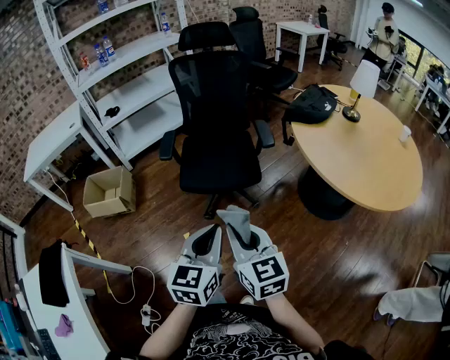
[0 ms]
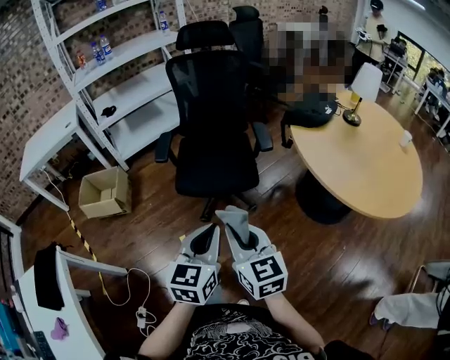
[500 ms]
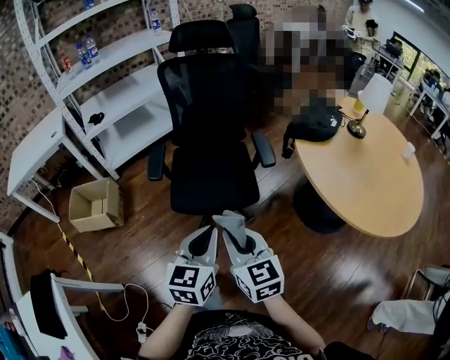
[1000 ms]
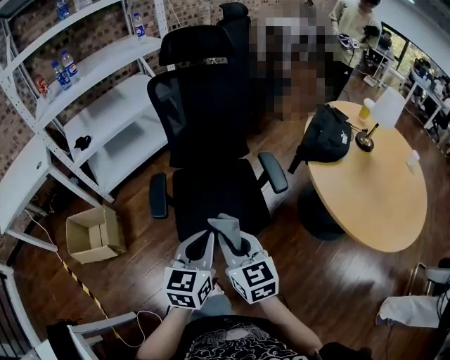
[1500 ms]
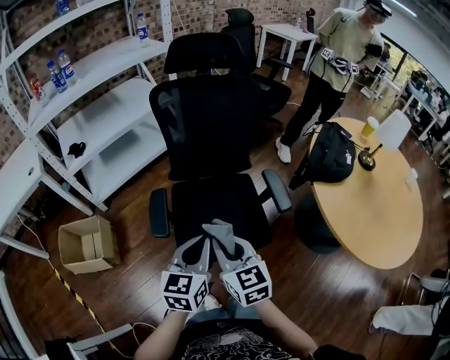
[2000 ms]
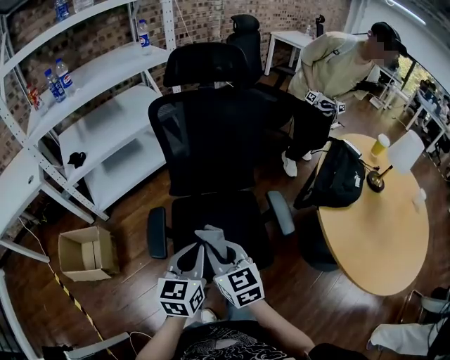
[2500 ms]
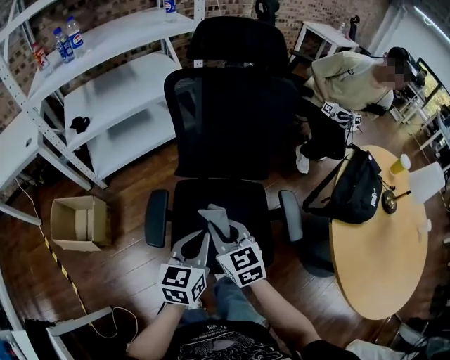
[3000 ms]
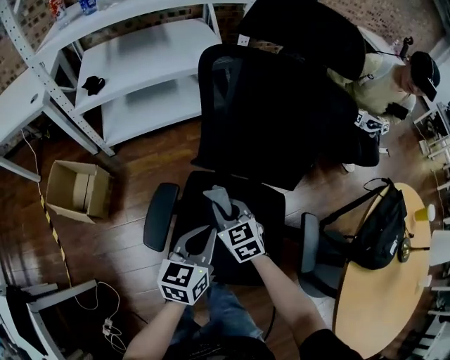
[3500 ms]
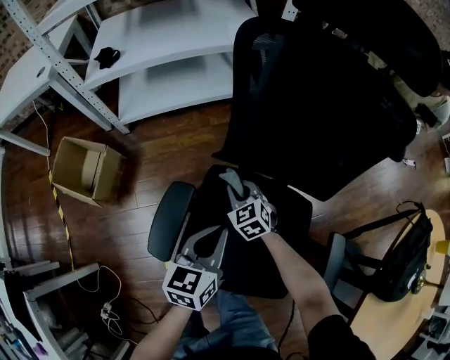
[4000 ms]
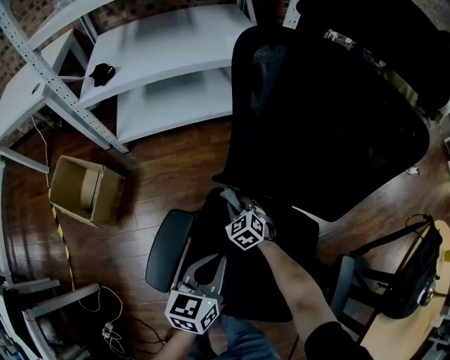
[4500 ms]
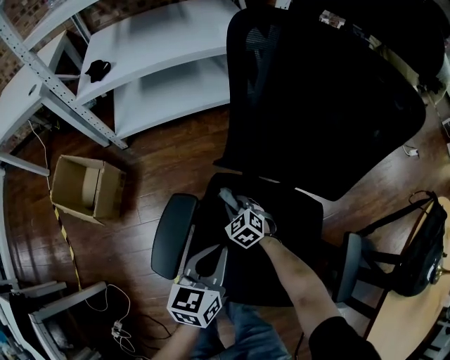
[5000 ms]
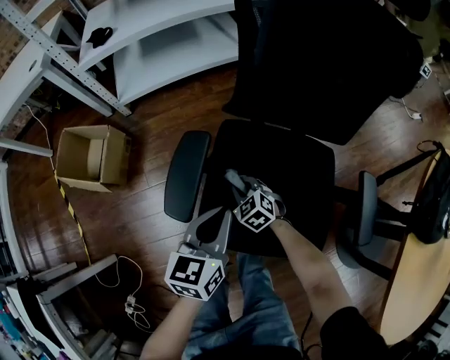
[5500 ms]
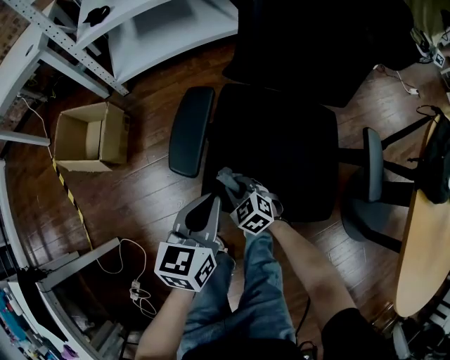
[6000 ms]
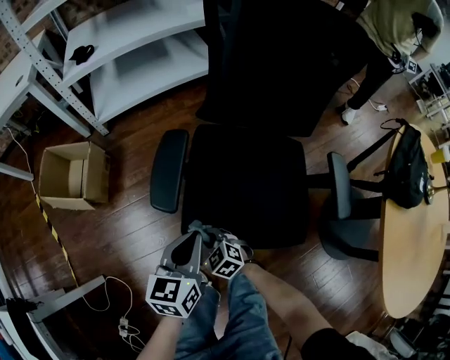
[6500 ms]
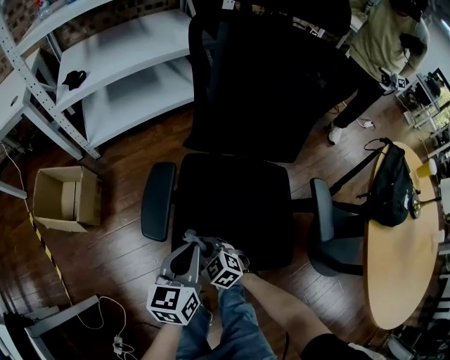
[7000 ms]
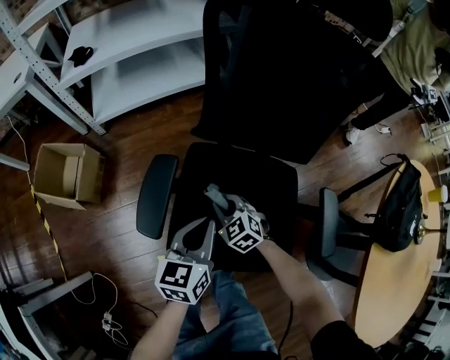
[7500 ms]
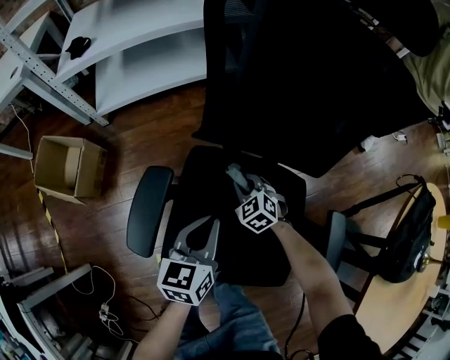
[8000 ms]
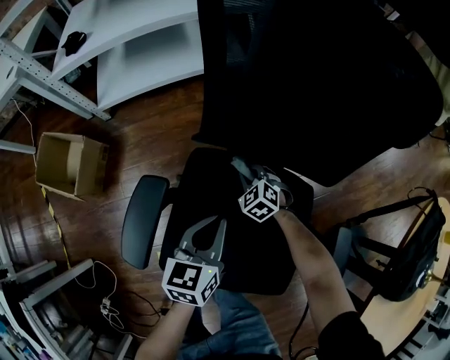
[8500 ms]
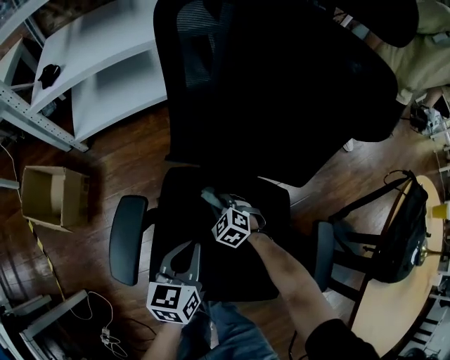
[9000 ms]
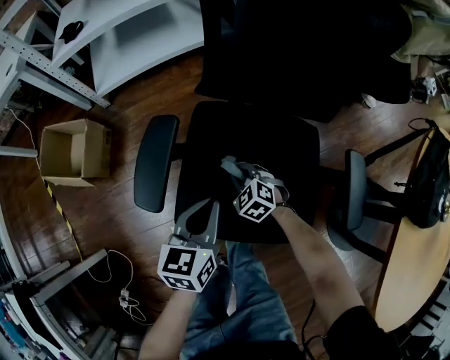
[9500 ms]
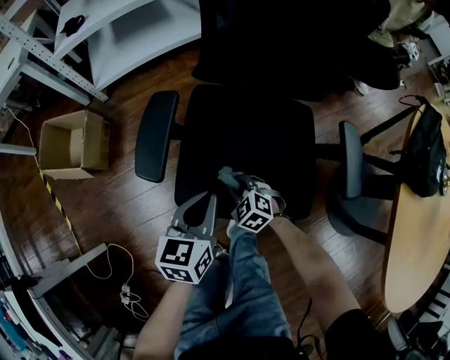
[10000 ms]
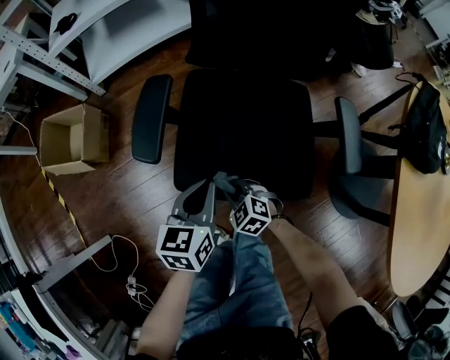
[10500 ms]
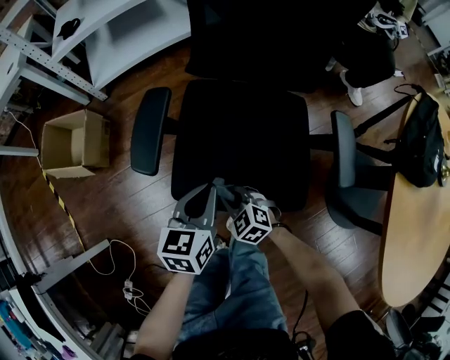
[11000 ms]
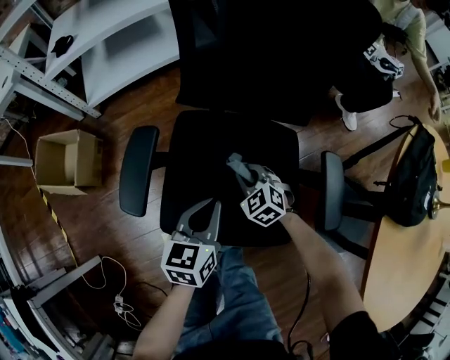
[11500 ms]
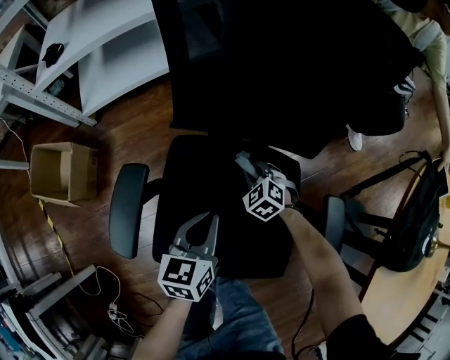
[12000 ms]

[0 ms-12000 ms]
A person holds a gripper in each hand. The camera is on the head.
0 ms to 2000 ms: Both grippers are carried forward, about 40 cm.
2000 ms to 4000 ms: The right gripper travels forward and downward by roughly 50 cm, and changes its angle by about 50 degrees; the left gripper travels forward and downward by roughly 35 cm, and turns by approximately 30 degrees.
4000 ms to 6000 ms: The grippers both shift backward and to the left by about 25 cm.
6000 ms to 8000 ms: Both grippers move forward and to the right, about 25 cm.
8000 ms to 10000 ms: The left gripper goes approximately 15 cm backward. Meanwhile the right gripper is displaced backward by approximately 25 cm.
10000 ms to 12000 ms: The left gripper shifts approximately 20 cm forward and to the right. Meanwhile the right gripper moves forward and to the right, about 30 cm.

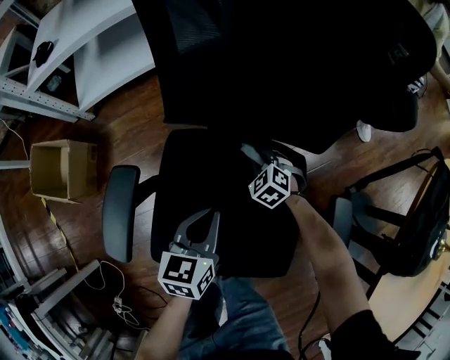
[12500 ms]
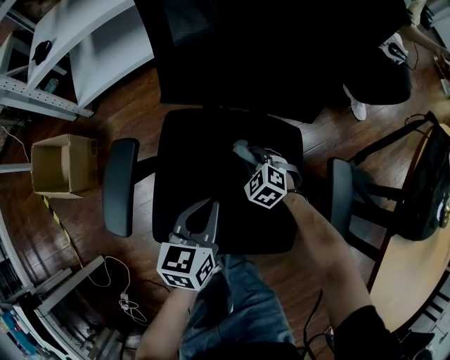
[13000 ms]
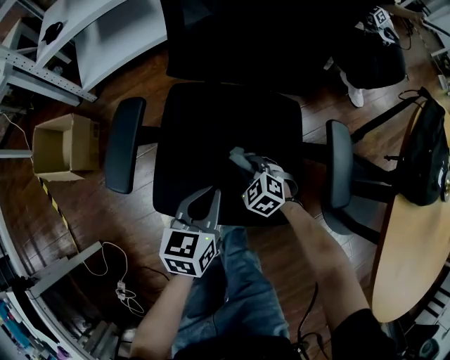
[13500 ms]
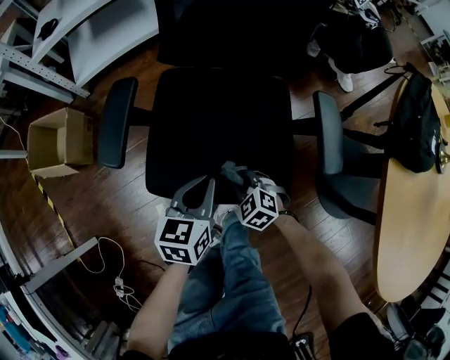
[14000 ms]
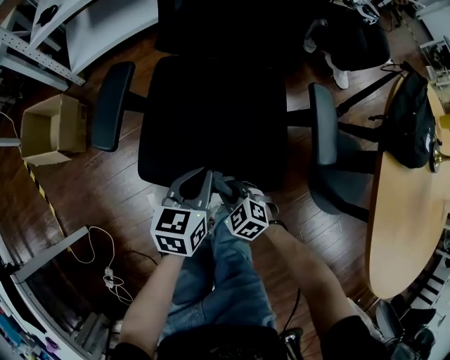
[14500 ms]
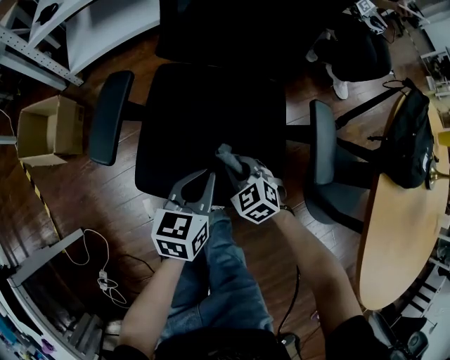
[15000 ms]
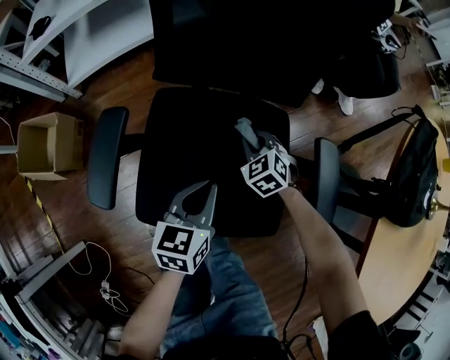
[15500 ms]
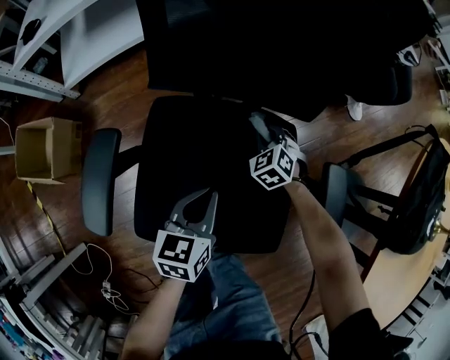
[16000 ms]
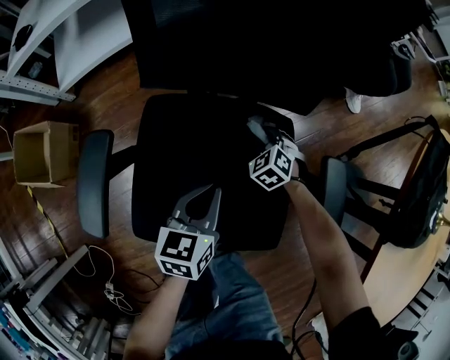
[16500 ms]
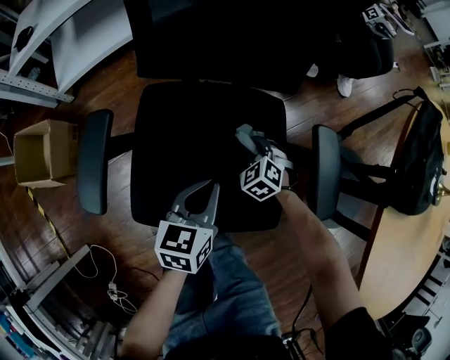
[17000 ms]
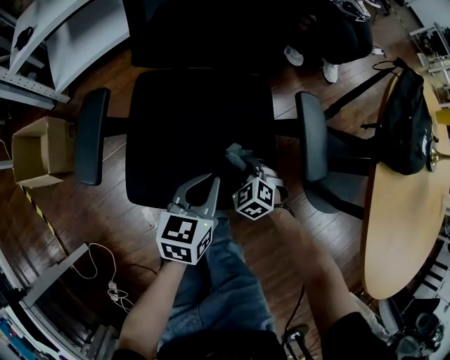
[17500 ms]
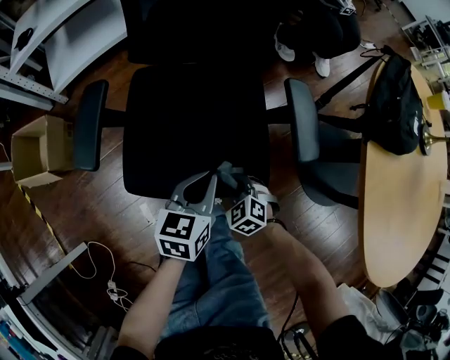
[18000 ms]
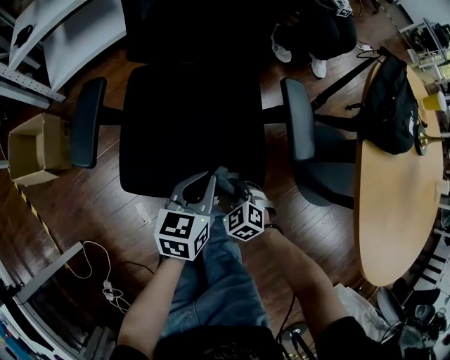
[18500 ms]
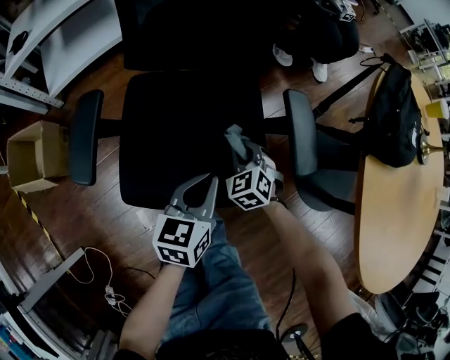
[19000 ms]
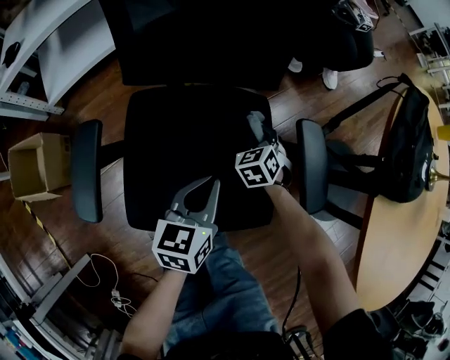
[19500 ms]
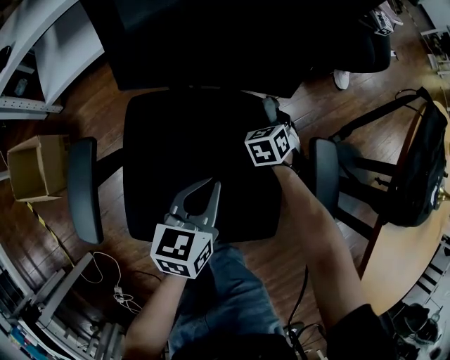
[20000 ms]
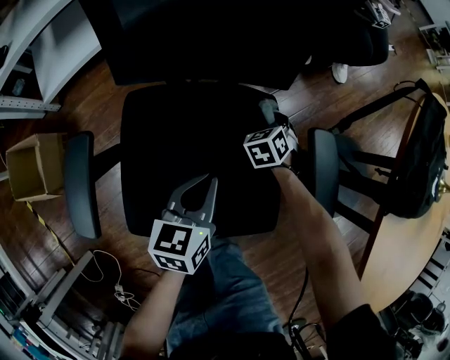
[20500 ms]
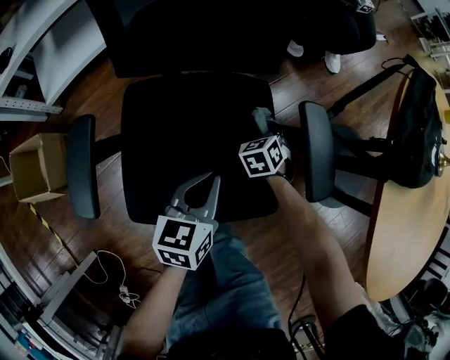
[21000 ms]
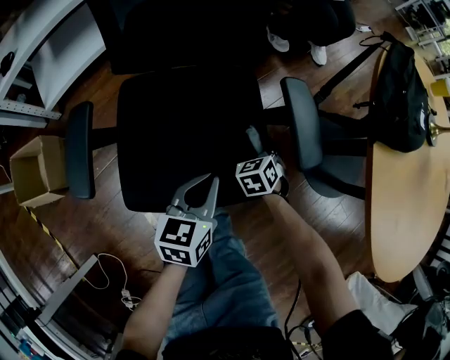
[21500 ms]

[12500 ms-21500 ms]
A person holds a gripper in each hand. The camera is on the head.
12500 ms to 14500 ms: The right gripper goes roughly 40 cm backward, while the left gripper shifts some 20 cm backward.
14500 ms to 17000 ms: The right gripper travels forward by roughly 30 cm, and swivels approximately 20 degrees. Meanwhile the left gripper travels forward by roughly 10 cm.
17000 ms to 19500 ms: The left gripper travels backward and back again, about 10 cm each way. The right gripper is displaced to the right by some 5 cm, goes backward and returns, roughly 25 cm each way, and swivels roughly 30 degrees.
19500 ms to 21500 ms: The right gripper goes approximately 15 cm backward and to the right. Meanwhile the left gripper is displaced backward and to the right by about 10 cm.

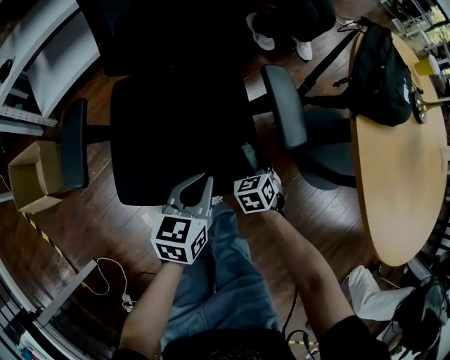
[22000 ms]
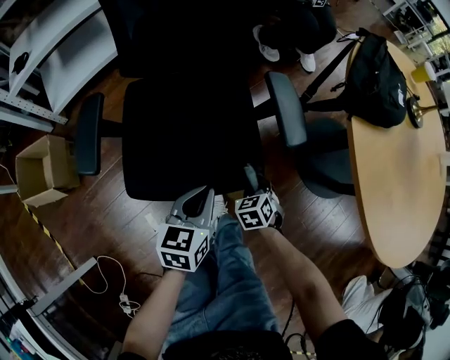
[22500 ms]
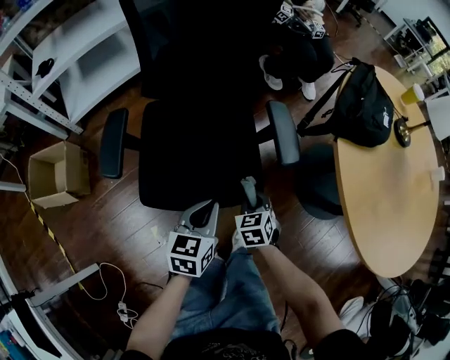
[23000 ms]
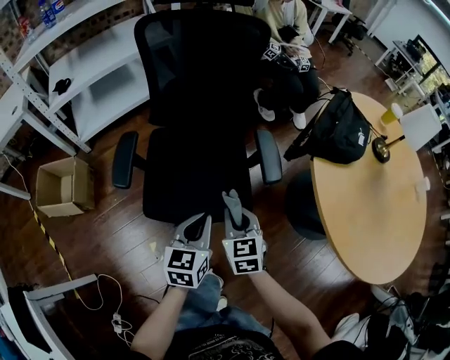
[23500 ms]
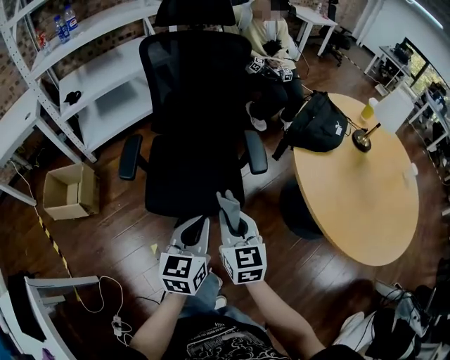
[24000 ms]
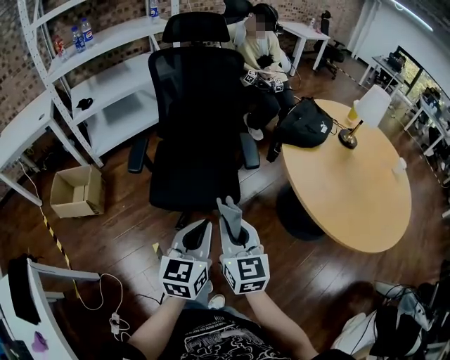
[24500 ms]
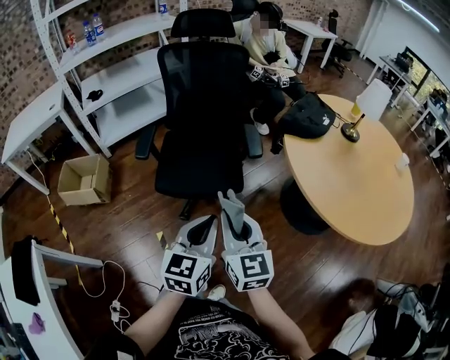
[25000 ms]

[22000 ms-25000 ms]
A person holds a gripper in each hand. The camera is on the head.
22000 ms to 23500 ms: The left gripper shifts about 15 cm upward and backward, while the right gripper goes about 30 cm upward and backward, and changes its angle by approximately 30 degrees.
23500 ms to 25000 ms: The grippers both shift backward and upward by about 35 cm. The right gripper turns by approximately 30 degrees.

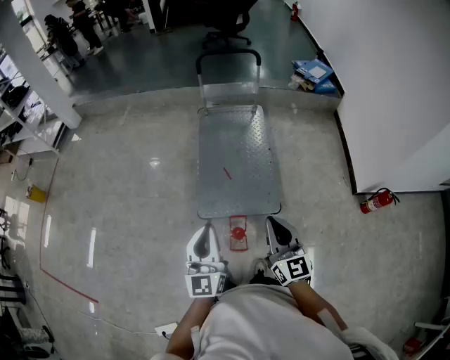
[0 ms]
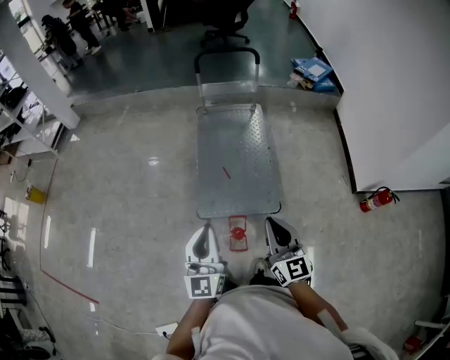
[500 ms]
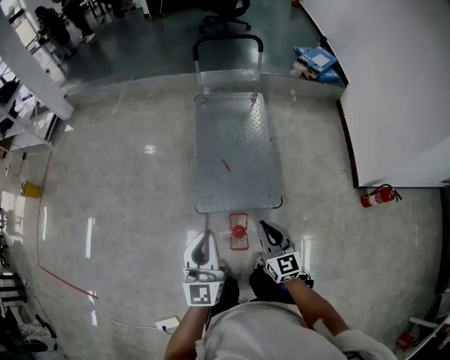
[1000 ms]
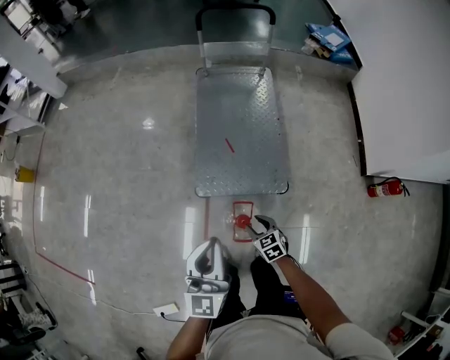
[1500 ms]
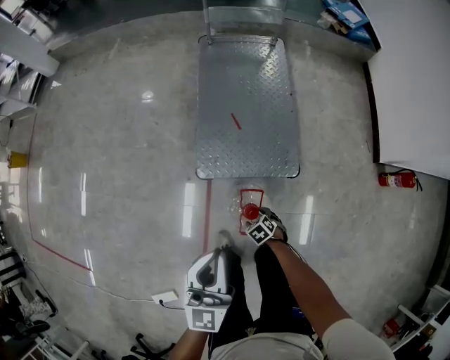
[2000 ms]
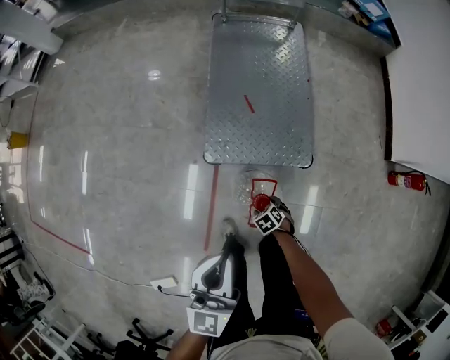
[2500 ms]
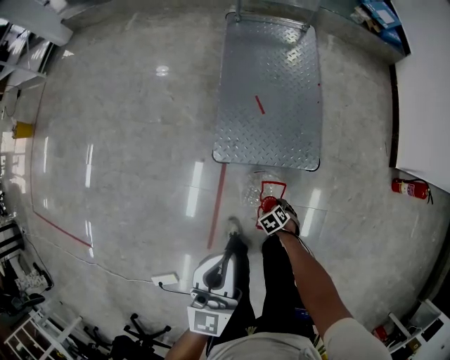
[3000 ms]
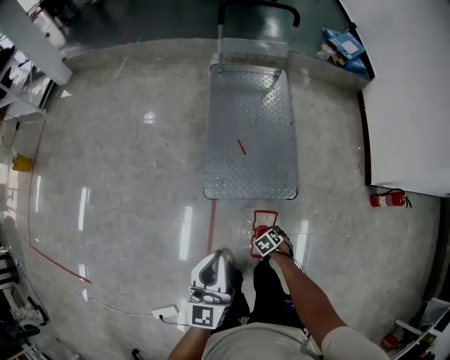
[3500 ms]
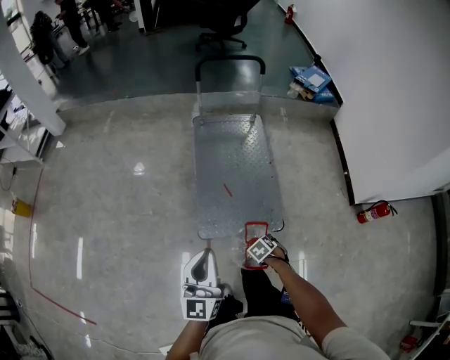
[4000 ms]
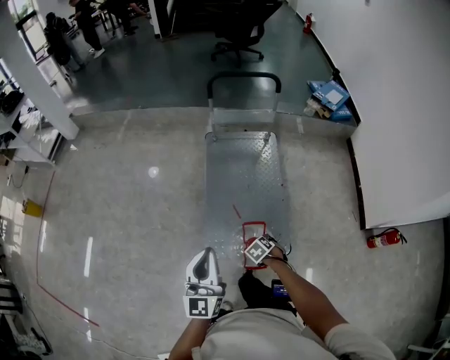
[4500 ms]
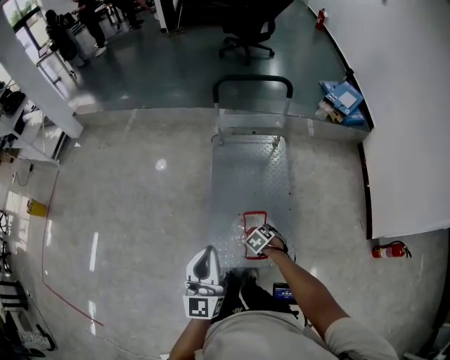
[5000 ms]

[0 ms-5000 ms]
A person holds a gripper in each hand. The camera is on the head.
0 ms to 2500 ms: The left gripper goes some 20 cm downward; the right gripper heads downward, covering roughly 60 cm, tips its fingers downward by some 80 degrees, and opens up.
2500 ms to 5000 ms: The right gripper ends up about 50 cm from where it was. Meanwhile the left gripper shifts by some 35 cm.
